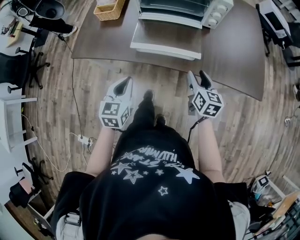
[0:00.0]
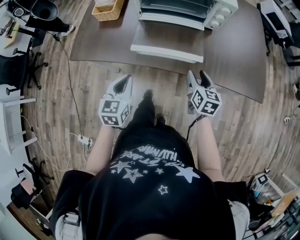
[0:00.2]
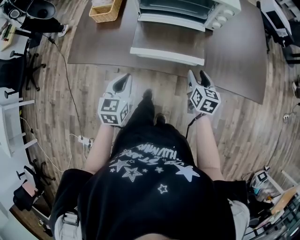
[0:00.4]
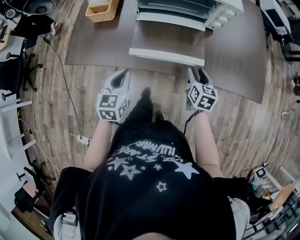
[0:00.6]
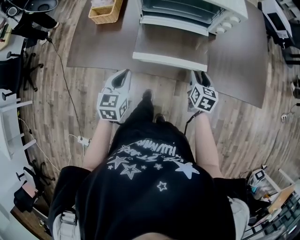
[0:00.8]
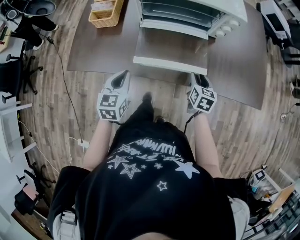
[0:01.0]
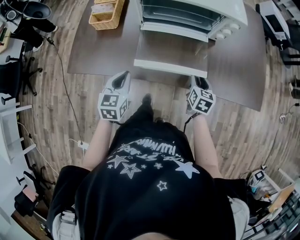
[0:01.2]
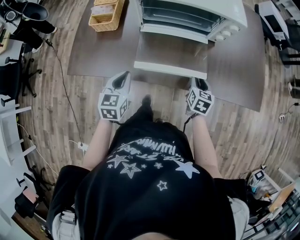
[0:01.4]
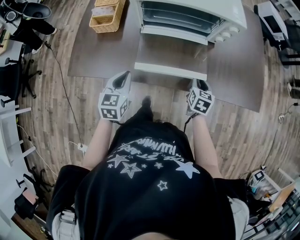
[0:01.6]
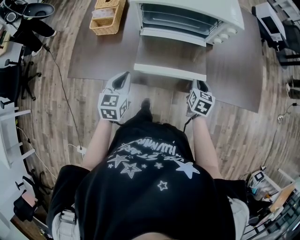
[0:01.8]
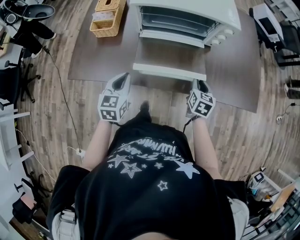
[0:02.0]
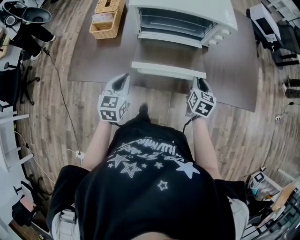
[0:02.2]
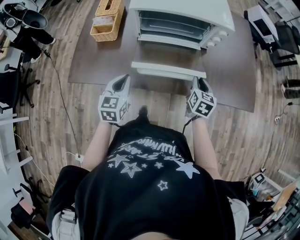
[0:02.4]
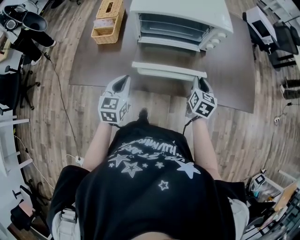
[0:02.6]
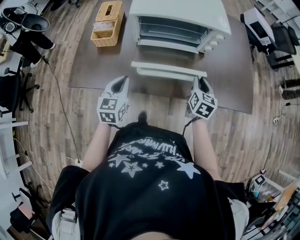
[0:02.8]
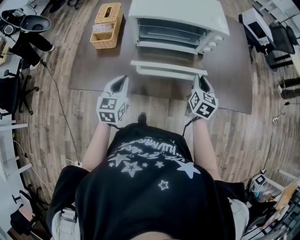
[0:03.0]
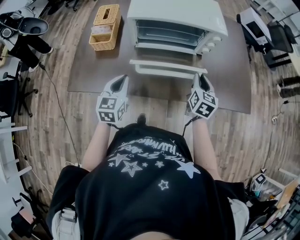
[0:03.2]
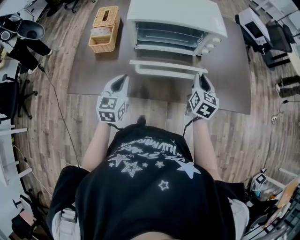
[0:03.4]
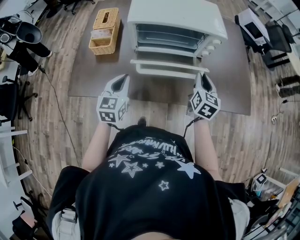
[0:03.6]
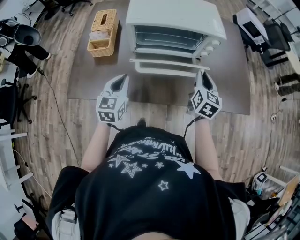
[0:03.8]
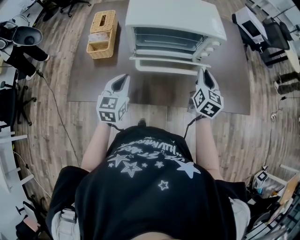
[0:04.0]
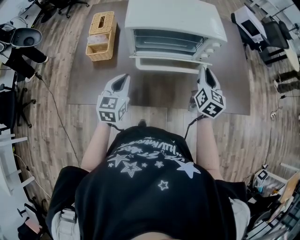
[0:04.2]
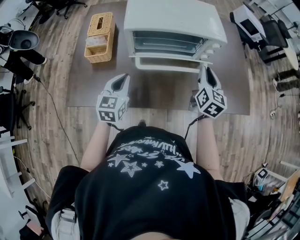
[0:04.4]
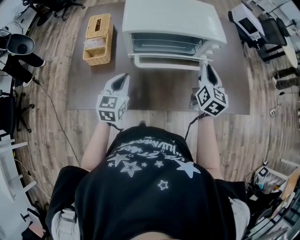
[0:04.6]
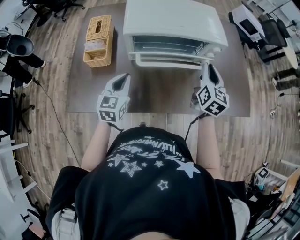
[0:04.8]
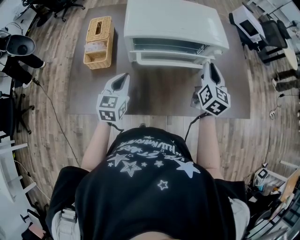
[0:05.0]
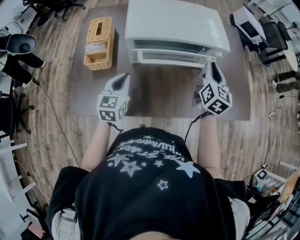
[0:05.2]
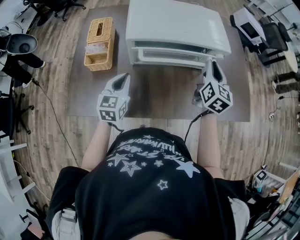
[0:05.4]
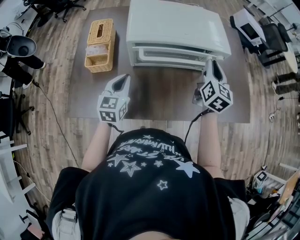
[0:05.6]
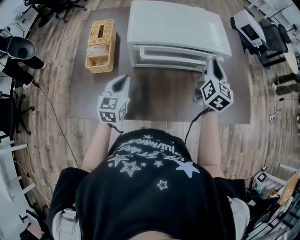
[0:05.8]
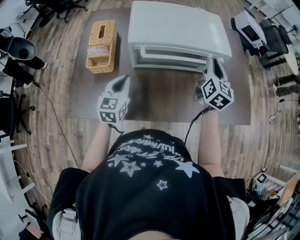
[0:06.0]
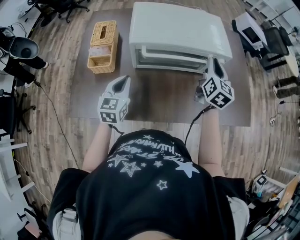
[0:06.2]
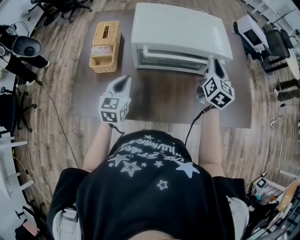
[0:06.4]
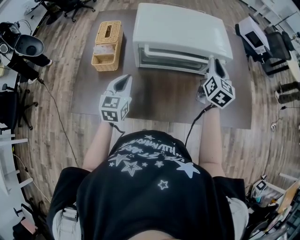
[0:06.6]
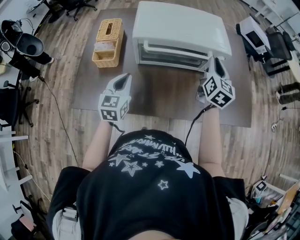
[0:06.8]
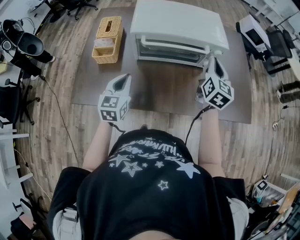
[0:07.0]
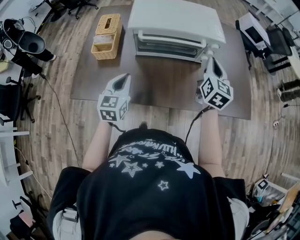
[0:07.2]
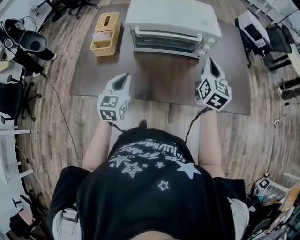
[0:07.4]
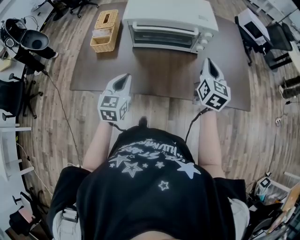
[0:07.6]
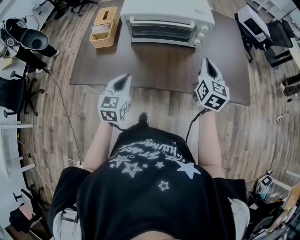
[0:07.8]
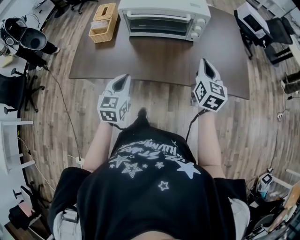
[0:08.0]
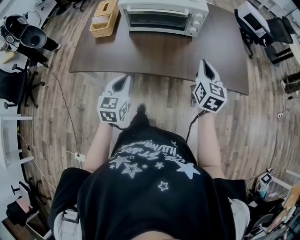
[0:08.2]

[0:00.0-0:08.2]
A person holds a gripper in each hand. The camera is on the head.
0:00.0 to 0:01.6: The left gripper shifts approximately 15 cm forward and to the left. The right gripper shifts some 10 cm forward and downward, rotates roughly 20 degrees, and closes its fingers.
0:01.6 to 0:03.2: The left gripper shifts by roughly 5 cm. Meanwhile the right gripper travels upward by some 10 cm.
0:03.2 to 0:05.0: The right gripper moves forward and upward, about 15 cm. The left gripper moves forward, some 10 cm.
0:05.0 to 0:06.6: The right gripper shifts roughly 5 cm forward.
0:06.6 to 0:08.2: The right gripper goes about 25 cm backward, while the left gripper moves backward and to the right, about 25 cm.

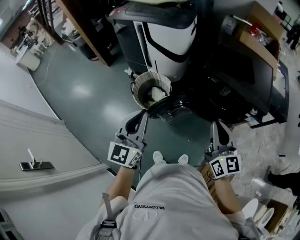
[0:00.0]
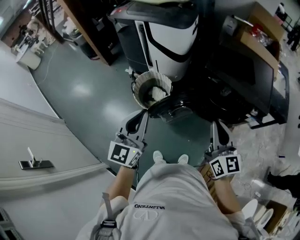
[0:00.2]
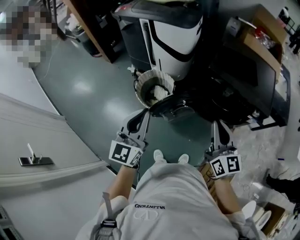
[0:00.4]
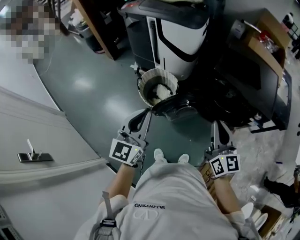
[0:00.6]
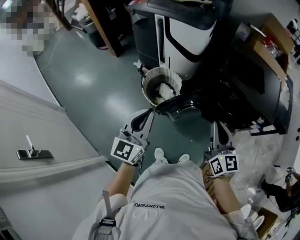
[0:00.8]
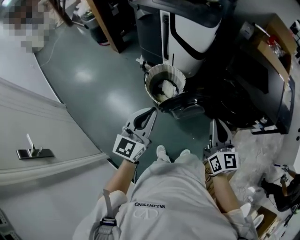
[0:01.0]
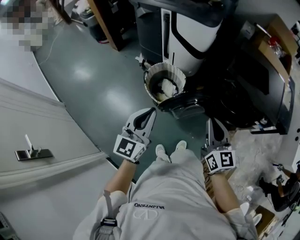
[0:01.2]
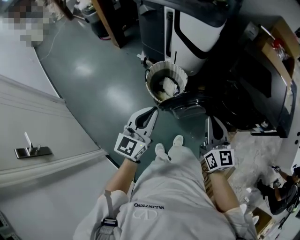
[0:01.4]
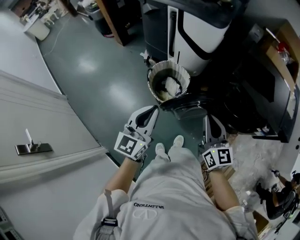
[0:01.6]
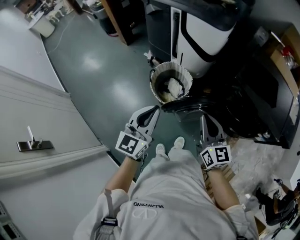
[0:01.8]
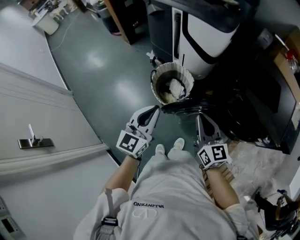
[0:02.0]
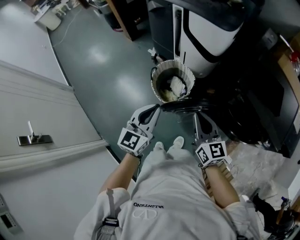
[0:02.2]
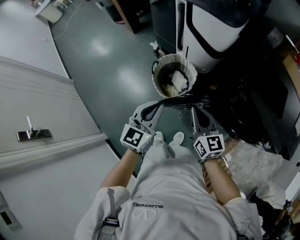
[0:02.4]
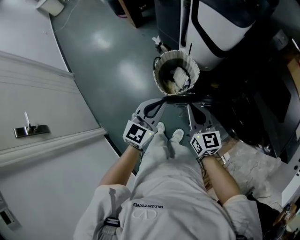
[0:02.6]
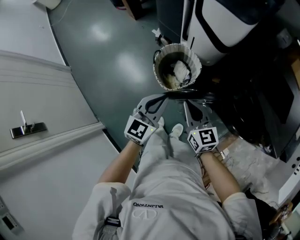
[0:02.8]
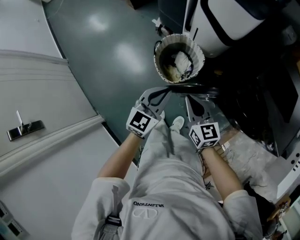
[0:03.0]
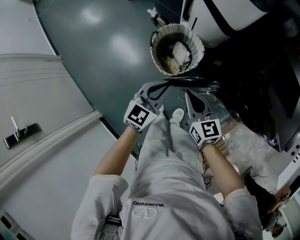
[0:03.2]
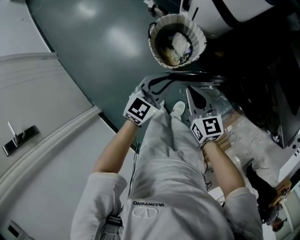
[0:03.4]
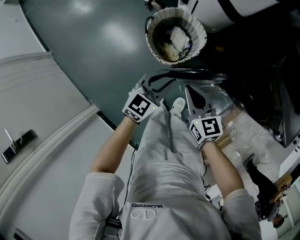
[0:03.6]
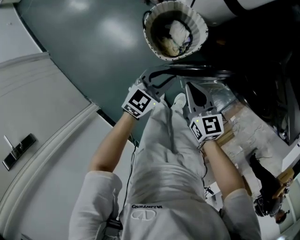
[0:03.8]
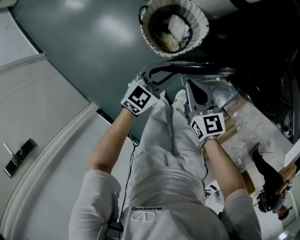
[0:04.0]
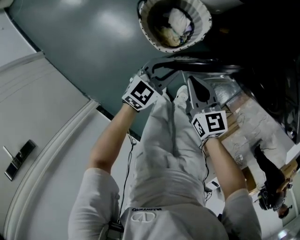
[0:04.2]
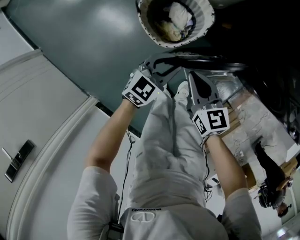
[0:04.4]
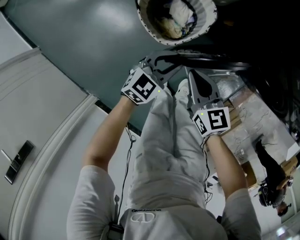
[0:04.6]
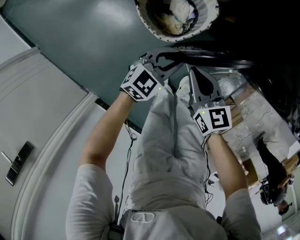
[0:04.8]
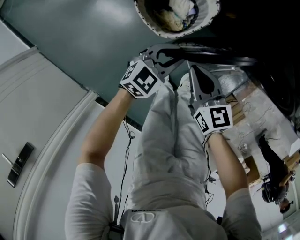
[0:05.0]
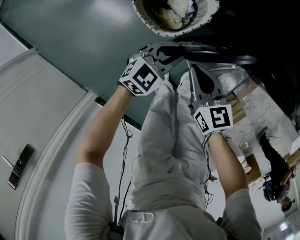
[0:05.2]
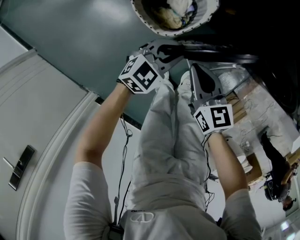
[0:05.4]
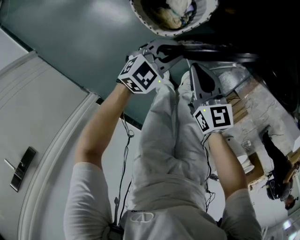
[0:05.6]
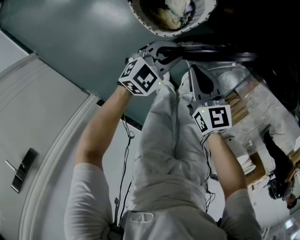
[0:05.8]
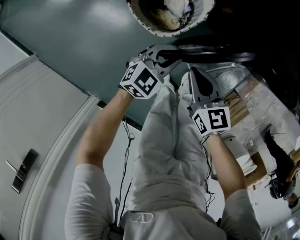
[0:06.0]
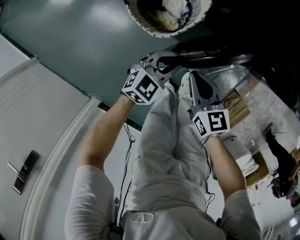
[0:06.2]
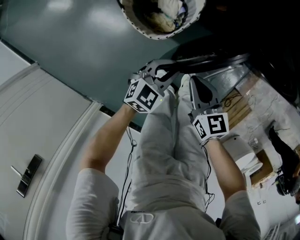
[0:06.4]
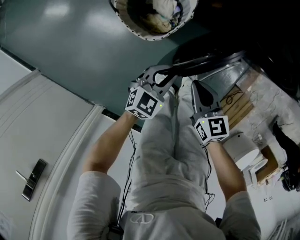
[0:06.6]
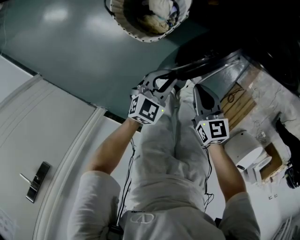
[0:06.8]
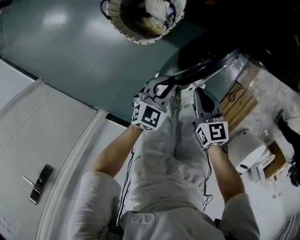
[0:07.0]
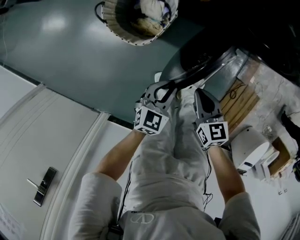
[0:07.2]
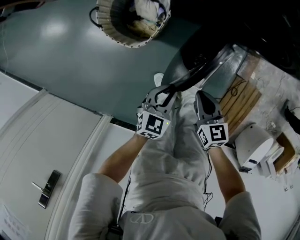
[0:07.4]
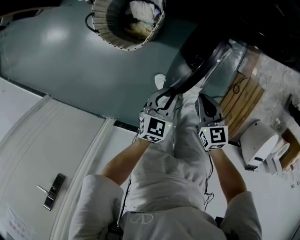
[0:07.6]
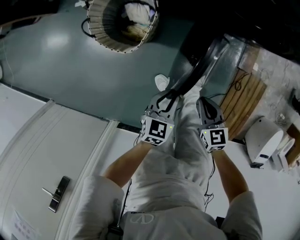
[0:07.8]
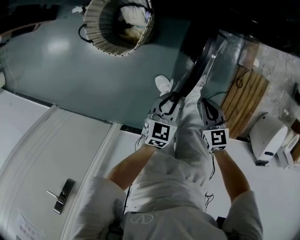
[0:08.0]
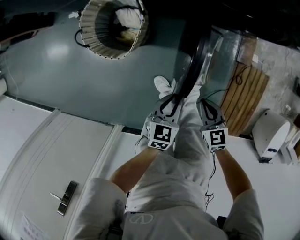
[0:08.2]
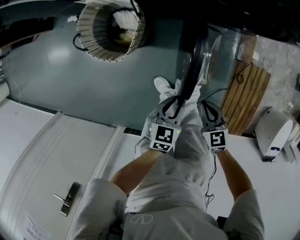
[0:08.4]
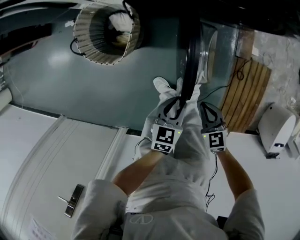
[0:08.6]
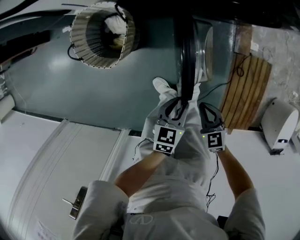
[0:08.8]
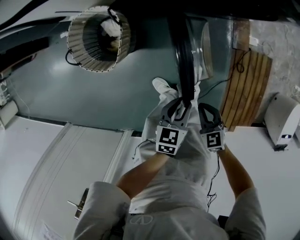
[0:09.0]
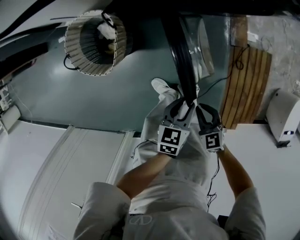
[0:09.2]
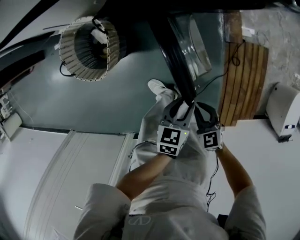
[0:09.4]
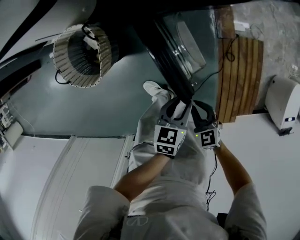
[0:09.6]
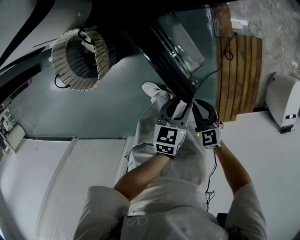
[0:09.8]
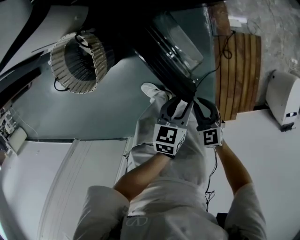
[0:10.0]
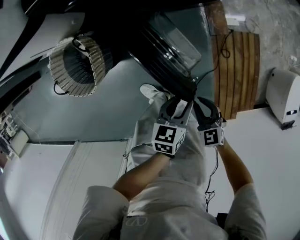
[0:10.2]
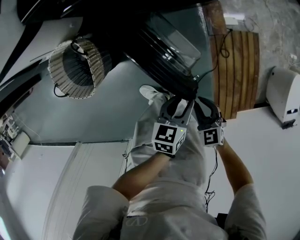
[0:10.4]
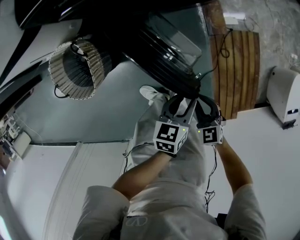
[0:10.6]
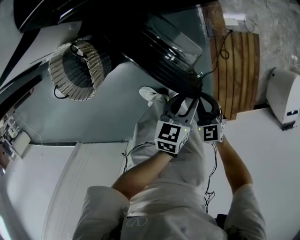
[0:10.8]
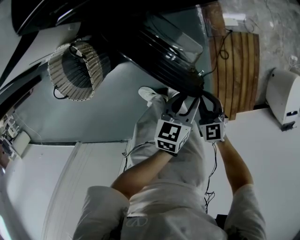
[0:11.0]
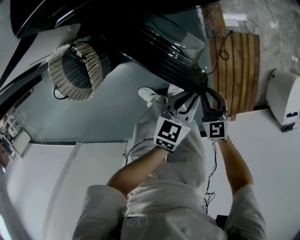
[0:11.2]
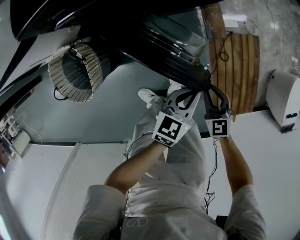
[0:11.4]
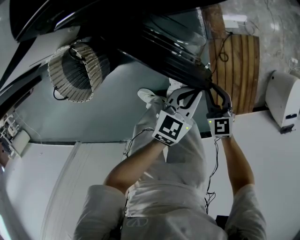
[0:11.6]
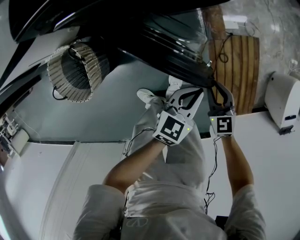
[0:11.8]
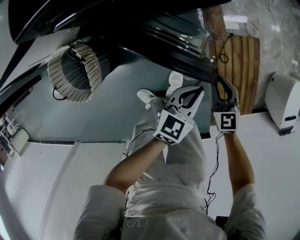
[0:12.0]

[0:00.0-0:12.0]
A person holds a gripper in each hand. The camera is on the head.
0:00.0 to 0:01.6: The left gripper heads to the left and downward, covering some 10 cm; the right gripper moves to the left, forward and downward, about 20 cm.
0:01.6 to 0:03.0: The right gripper moves downward, forward and to the left, roughly 20 cm, and turns by about 30 degrees. Meanwhile the left gripper heads downward and forward, covering about 20 cm.
0:03.0 to 0:04.4: The grippers both shift downward by roughly 20 cm. The left gripper changes its angle by some 30 degrees, and opens.
0:04.4 to 0:06.0: The two grippers go approximately 5 cm downward.
0:06.0 to 0:07.6: The two grippers go some 20 cm to the right and backward. The right gripper changes its angle by roughly 20 degrees.
0:07.6 to 0:09.0: The left gripper travels to the right by roughly 15 cm. The right gripper goes about 15 cm to the right and backward.
0:09.0 to 0:10.4: The right gripper goes approximately 10 cm to the right. Meanwhile the left gripper is displaced to the right and forward by approximately 15 cm.
0:10.4 to 0:12.0: Both grippers travel together forward and to the right, roughly 15 cm. The left gripper changes its angle by some 30 degrees, and closes.

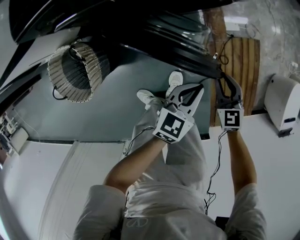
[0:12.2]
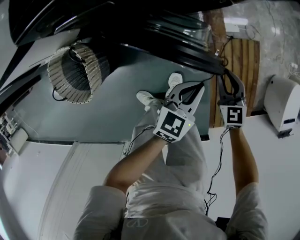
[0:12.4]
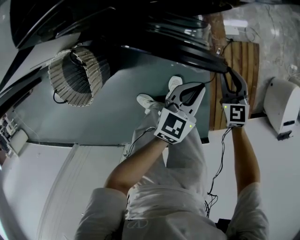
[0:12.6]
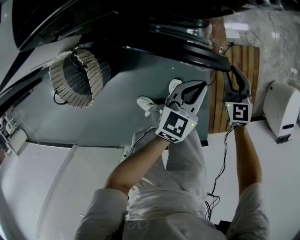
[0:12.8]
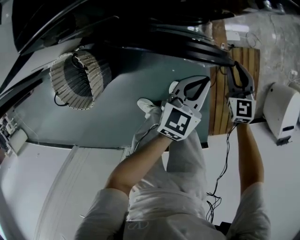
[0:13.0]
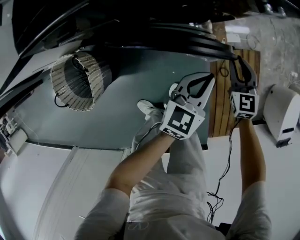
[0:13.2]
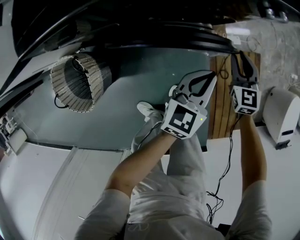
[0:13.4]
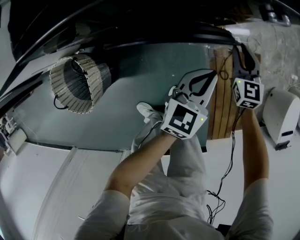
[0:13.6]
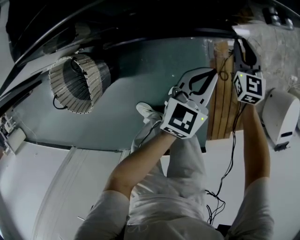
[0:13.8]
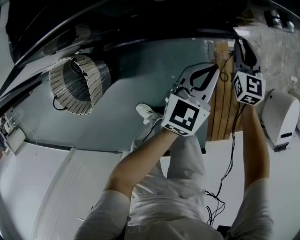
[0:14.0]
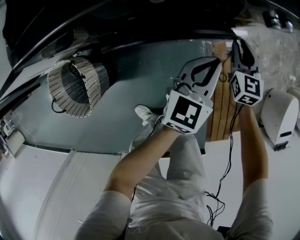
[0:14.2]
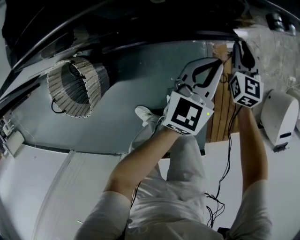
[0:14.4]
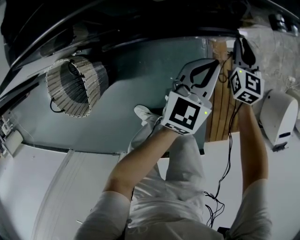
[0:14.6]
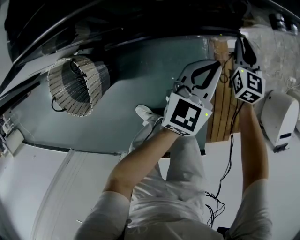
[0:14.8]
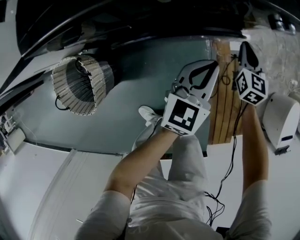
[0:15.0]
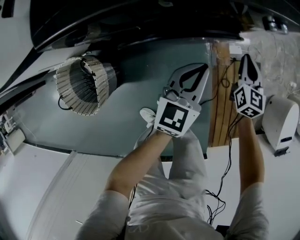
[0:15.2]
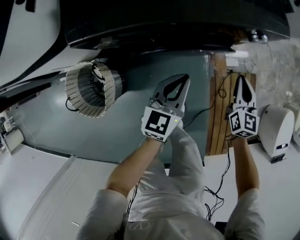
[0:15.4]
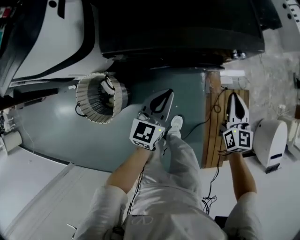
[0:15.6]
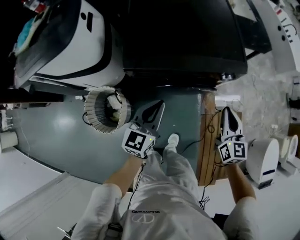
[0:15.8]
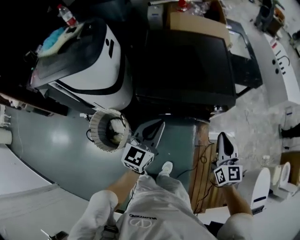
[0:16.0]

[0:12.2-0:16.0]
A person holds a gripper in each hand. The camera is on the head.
0:12.2 to 0:13.4: Both grippers move forward, some 15 cm.
0:13.4 to 0:14.8: The left gripper moves roughly 5 cm. The right gripper is displaced forward by approximately 5 cm.
0:14.8 to 0:16.0: The left gripper heads upward and to the left, covering some 40 cm, and changes its angle by some 20 degrees, while the right gripper is displaced upward by roughly 50 cm, and rotates approximately 30 degrees.
